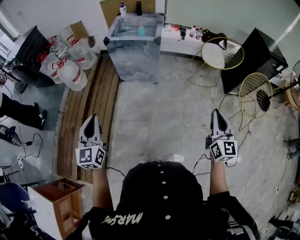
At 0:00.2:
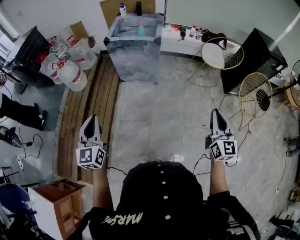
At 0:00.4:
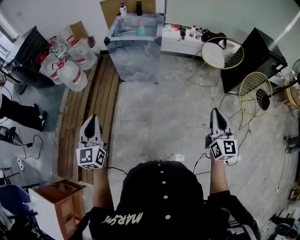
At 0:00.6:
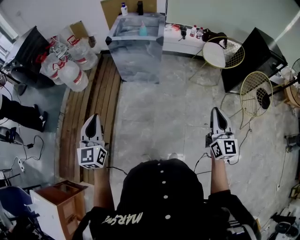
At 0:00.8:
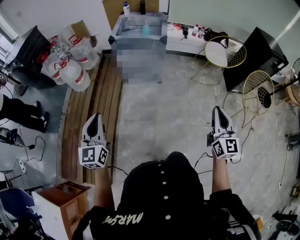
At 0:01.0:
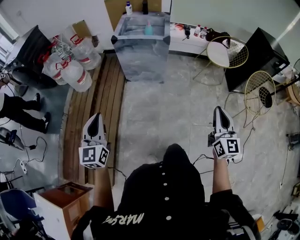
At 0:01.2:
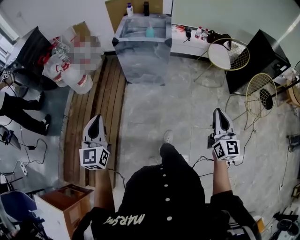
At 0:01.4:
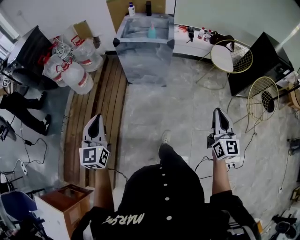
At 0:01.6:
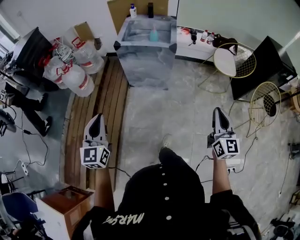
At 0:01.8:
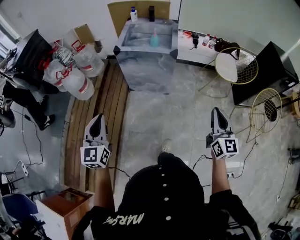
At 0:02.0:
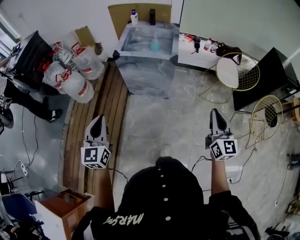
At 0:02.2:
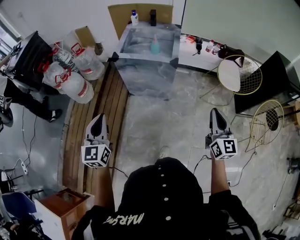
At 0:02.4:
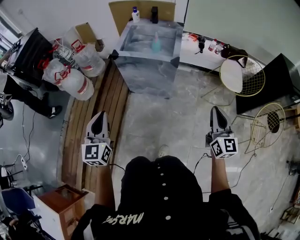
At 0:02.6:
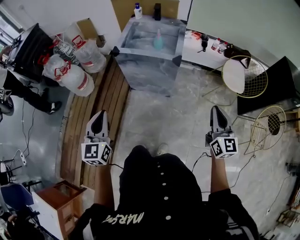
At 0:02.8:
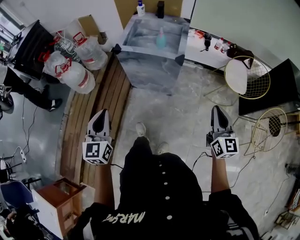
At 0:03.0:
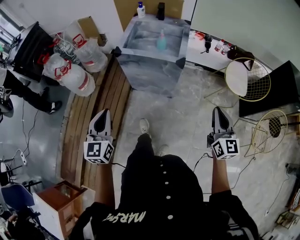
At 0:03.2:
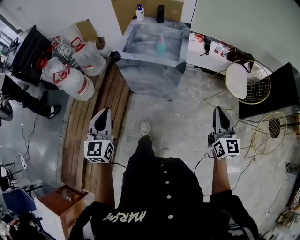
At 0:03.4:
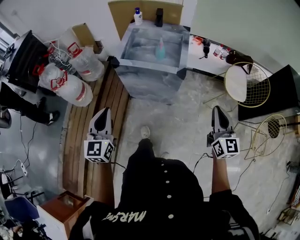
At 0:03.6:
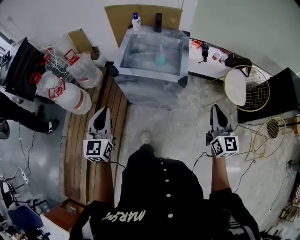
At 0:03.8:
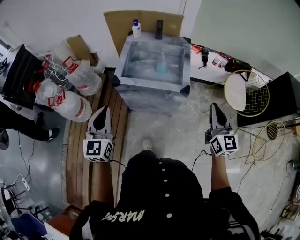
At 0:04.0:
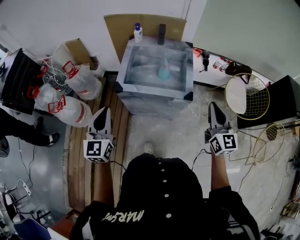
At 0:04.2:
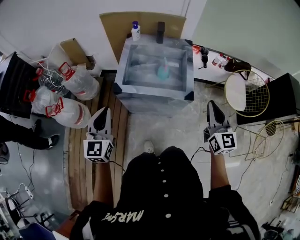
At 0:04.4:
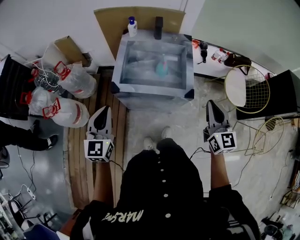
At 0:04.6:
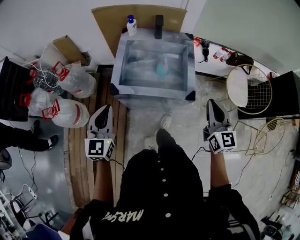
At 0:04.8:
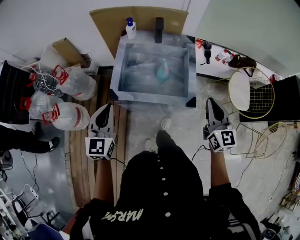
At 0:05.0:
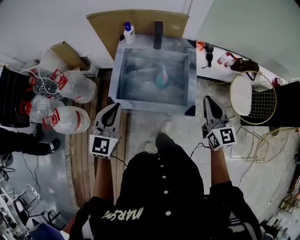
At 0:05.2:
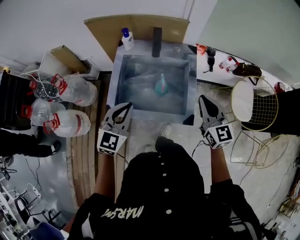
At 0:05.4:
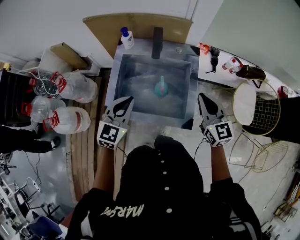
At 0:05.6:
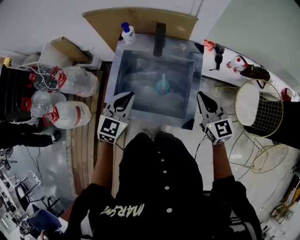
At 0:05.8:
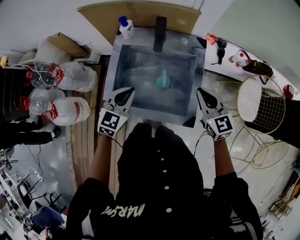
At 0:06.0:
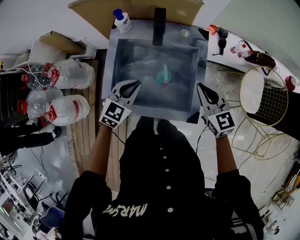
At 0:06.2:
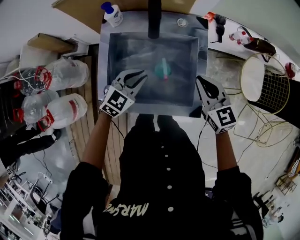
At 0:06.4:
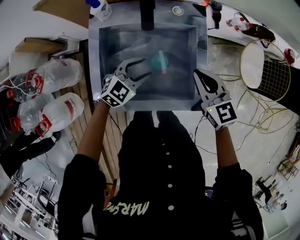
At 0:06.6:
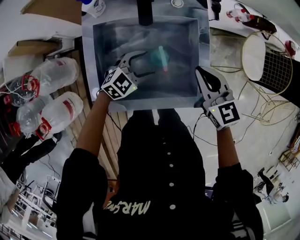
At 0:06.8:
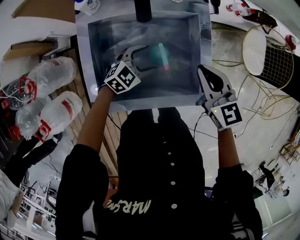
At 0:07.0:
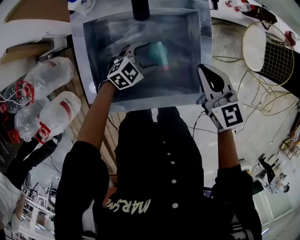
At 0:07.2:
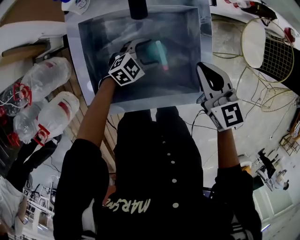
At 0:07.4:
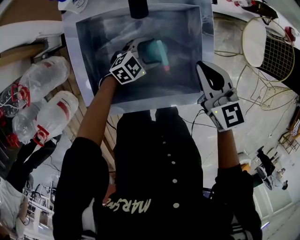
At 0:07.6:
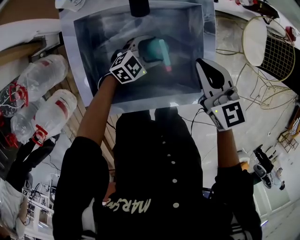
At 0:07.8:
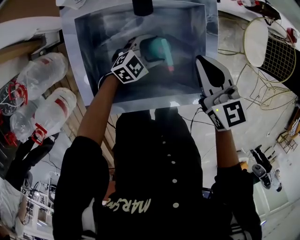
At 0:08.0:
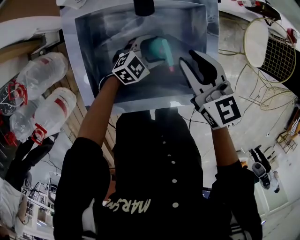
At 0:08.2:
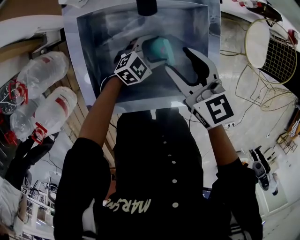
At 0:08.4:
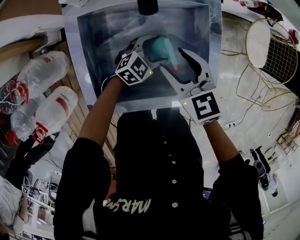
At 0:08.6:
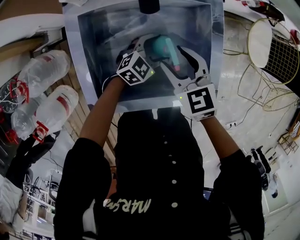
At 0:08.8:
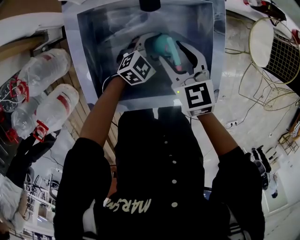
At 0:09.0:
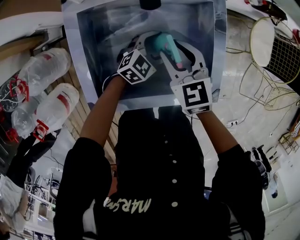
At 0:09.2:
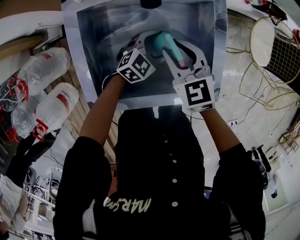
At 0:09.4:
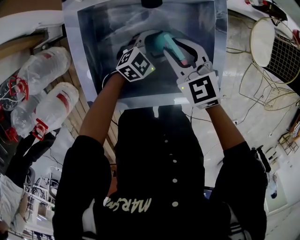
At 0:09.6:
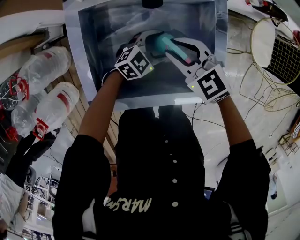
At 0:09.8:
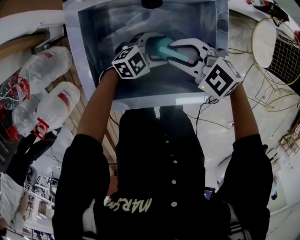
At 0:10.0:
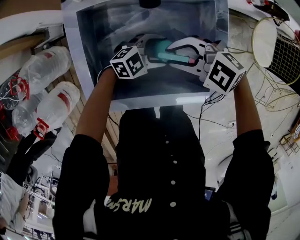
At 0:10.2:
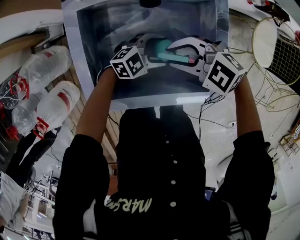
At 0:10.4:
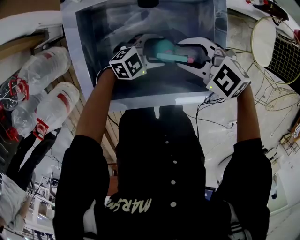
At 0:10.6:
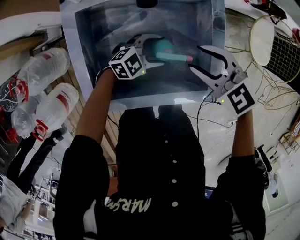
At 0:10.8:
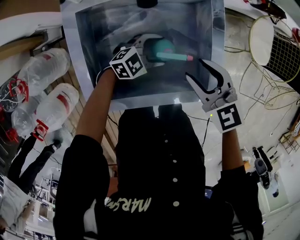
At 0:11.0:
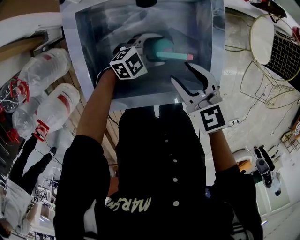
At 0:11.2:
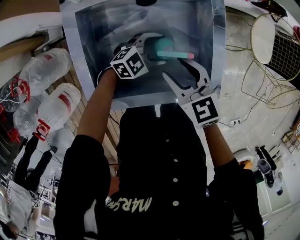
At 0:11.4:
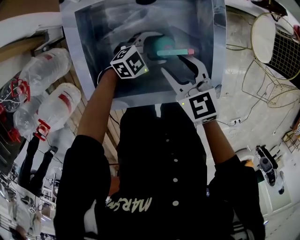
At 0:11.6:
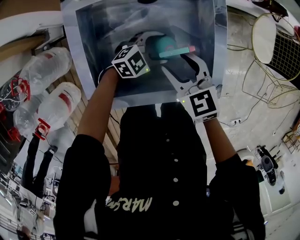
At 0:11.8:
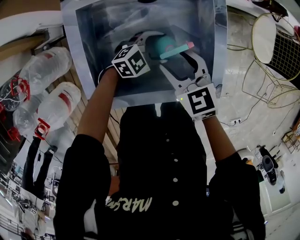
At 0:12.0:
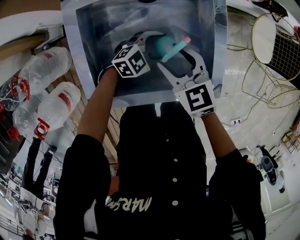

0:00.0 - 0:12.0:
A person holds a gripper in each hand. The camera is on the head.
0:00.0 - 0:01.6: Both grippers travel together forward and to the left, about 15 cm.
0:01.6 - 0:03.0: Both grippers move forward, approximately 20 cm.
0:03.0 - 0:04.4: The left gripper moves forward, about 35 cm, while the right gripper moves forward and to the left, roughly 30 cm.
0:04.4 - 0:06.0: The left gripper shifts about 40 cm forward, downward and to the right, and changes its angle by roughly 40 degrees, while the right gripper goes about 35 cm forward and downward, and changes its angle by roughly 30 degrees.
0:06.0 - 0:07.6: The left gripper shifts about 25 cm downward, rotates roughly 40 degrees, and opens its fingers, while the right gripper is displaced downward by some 10 cm.
0:07.6 - 0:09.0: The right gripper travels to the left and downward by about 10 cm, and opens.
0:09.0 - 0:10.4: The right gripper changes its angle by roughly 50 degrees.
0:10.4 - 0:12.0: The right gripper changes its angle by some 40 degrees.

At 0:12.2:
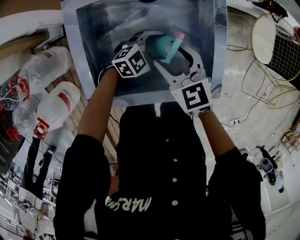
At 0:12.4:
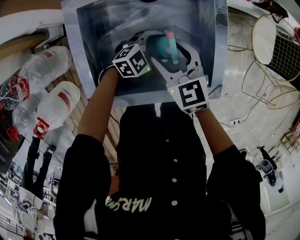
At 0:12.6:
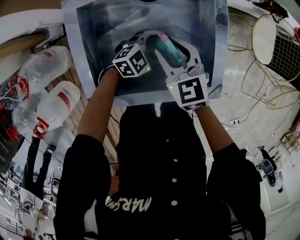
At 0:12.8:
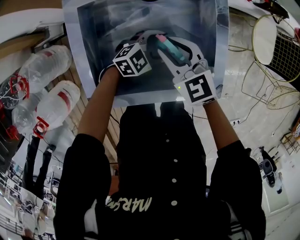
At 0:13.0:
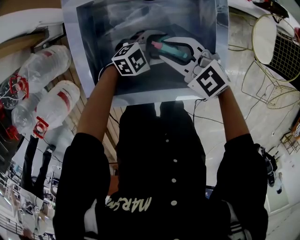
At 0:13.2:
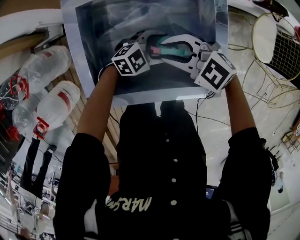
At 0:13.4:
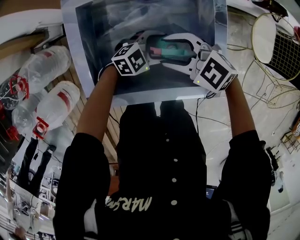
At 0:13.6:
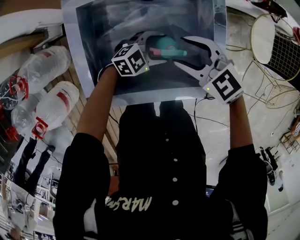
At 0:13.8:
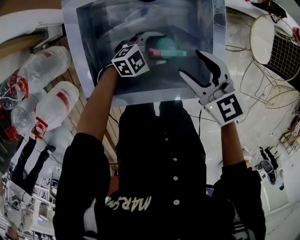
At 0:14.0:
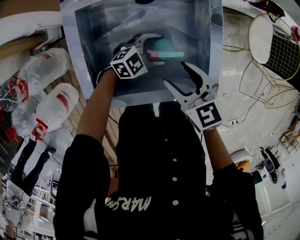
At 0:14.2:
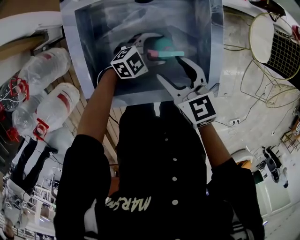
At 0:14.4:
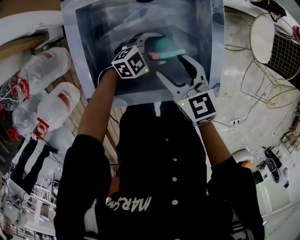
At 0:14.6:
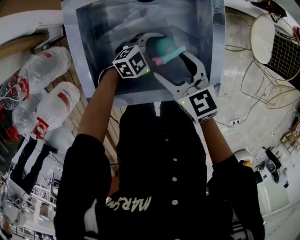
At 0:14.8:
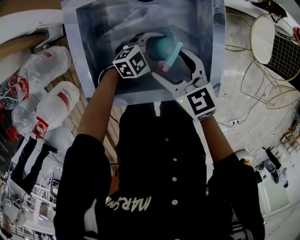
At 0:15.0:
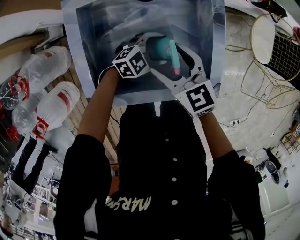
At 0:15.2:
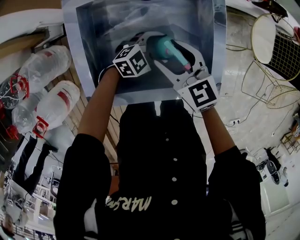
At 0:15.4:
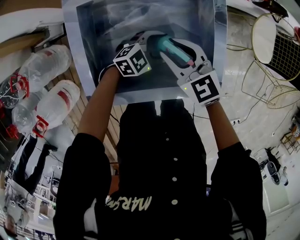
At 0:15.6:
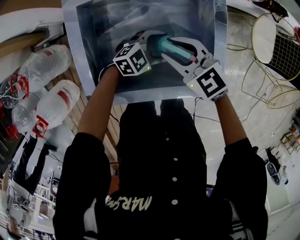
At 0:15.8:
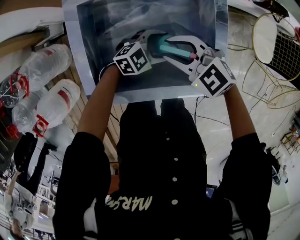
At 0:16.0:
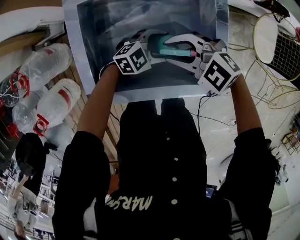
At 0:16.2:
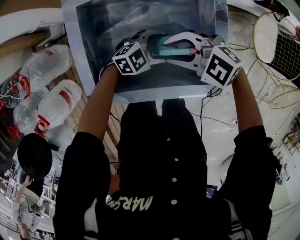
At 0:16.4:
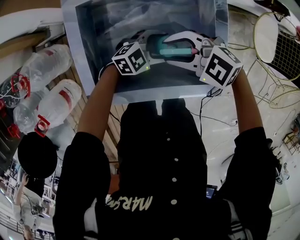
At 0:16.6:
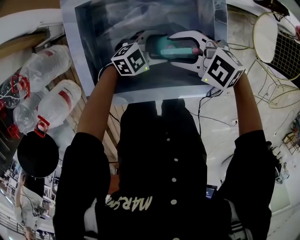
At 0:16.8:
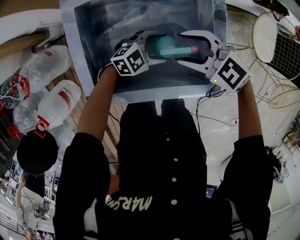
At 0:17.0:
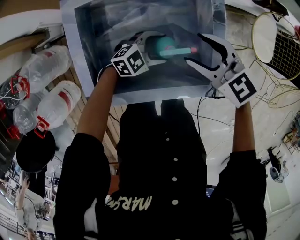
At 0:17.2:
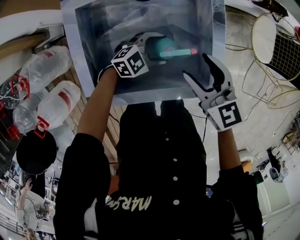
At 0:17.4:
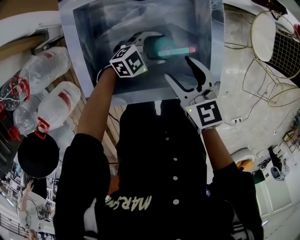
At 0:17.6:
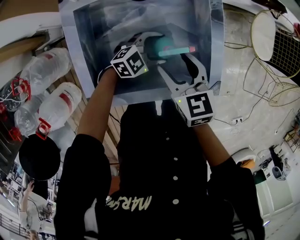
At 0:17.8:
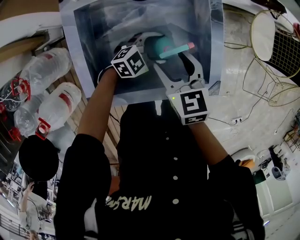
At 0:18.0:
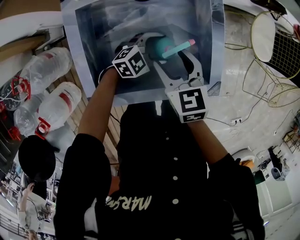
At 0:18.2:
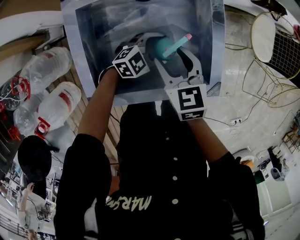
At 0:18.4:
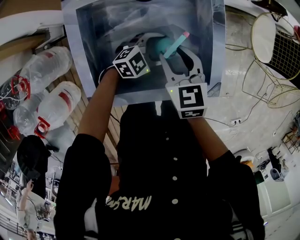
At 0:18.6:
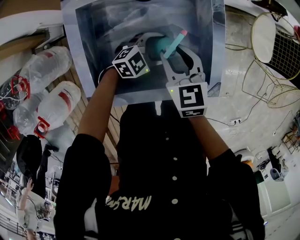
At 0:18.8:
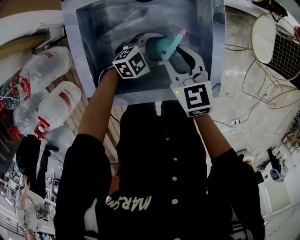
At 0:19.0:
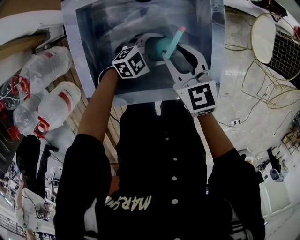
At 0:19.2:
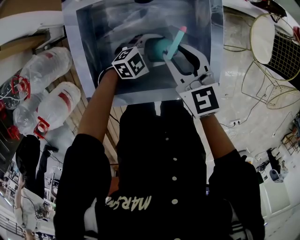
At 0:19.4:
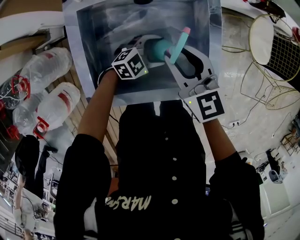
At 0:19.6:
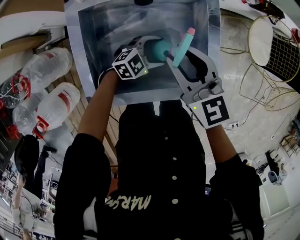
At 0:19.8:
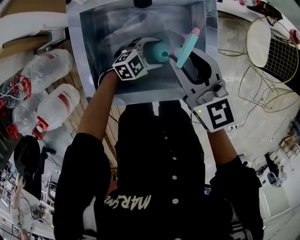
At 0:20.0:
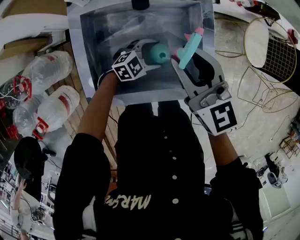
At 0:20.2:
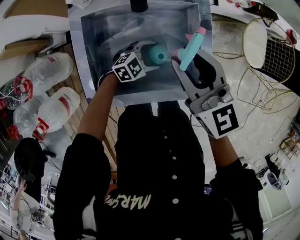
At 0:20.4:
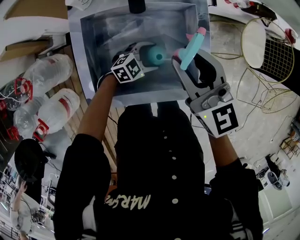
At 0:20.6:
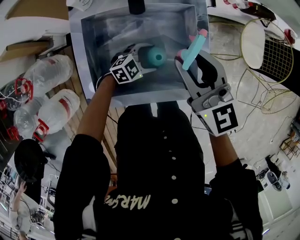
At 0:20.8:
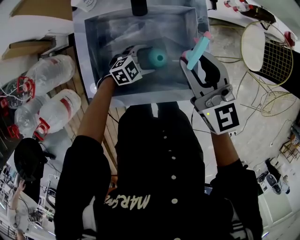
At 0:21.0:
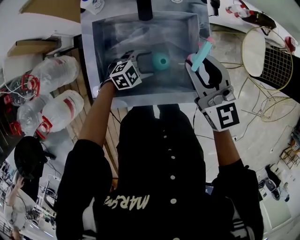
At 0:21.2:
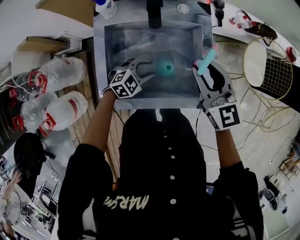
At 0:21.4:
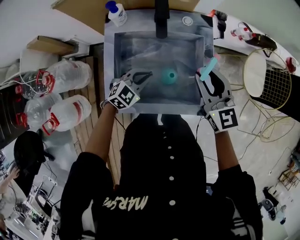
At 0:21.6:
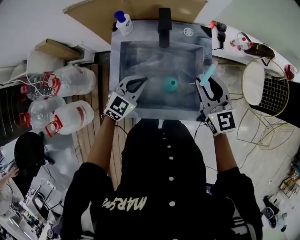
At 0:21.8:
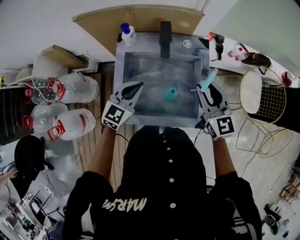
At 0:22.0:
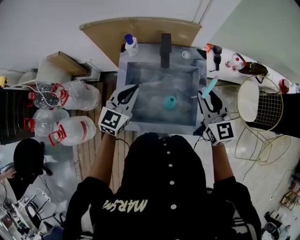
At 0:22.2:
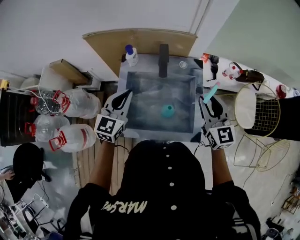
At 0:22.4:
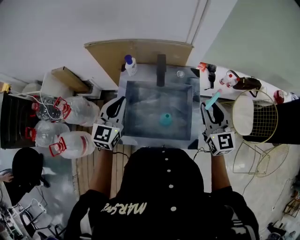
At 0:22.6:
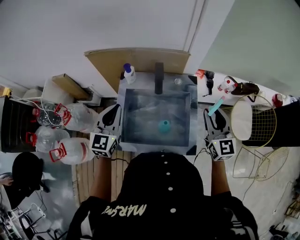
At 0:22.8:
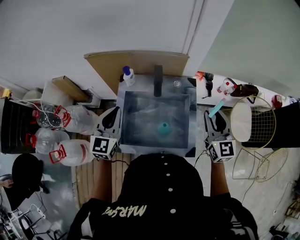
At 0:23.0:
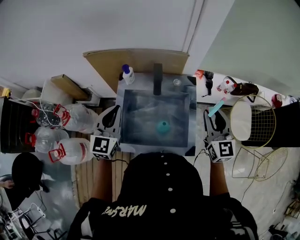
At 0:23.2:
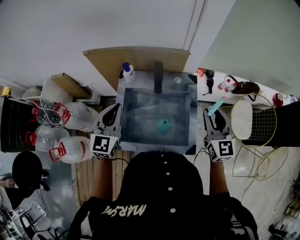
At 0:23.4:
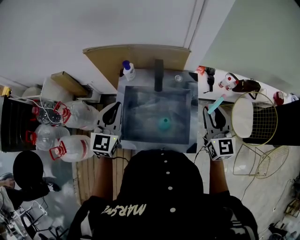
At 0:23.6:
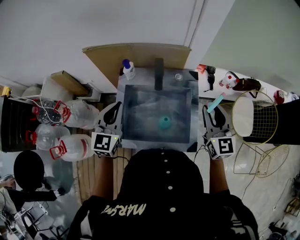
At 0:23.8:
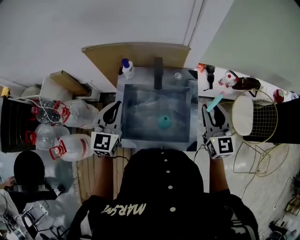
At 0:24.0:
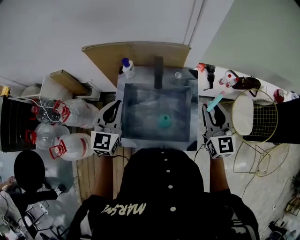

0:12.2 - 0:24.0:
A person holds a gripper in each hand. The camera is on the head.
0:12.2 - 0:13.6: The right gripper rotates some 30 degrees, and closes, then reopens.
0:13.6 - 0:15.2: The right gripper changes its angle by roughly 30 degrees.
0:15.2 - 0:16.6: The right gripper swivels approximately 50 degrees.
0:16.6 - 0:18.2: The right gripper rotates approximately 60 degrees.
0:18.2 - 0:19.6: The right gripper travels upward by about 10 cm, and swivels some 20 degrees.
0:19.6 - 0:21.0: The right gripper is displaced upward and to the right by approximately 10 cm.
0:21.0 - 0:22.6: The right gripper goes approximately 15 cm upward, while the left gripper moves upward, some 40 cm, tips its fingers upward by about 30 degrees, and closes.
0:22.6 - 0:24.0: The grippers move only a little.
